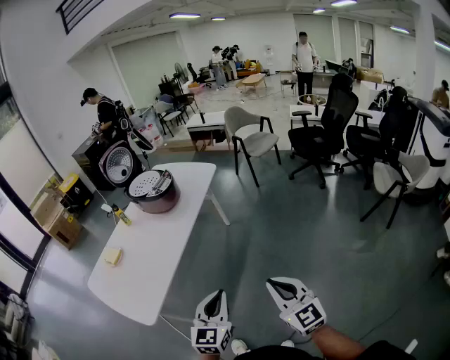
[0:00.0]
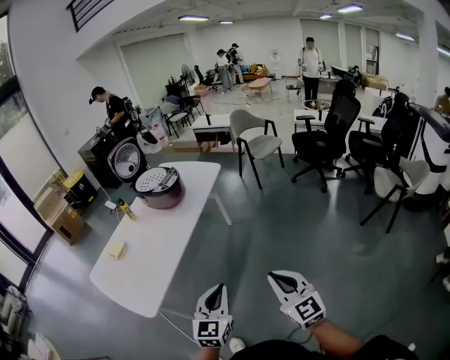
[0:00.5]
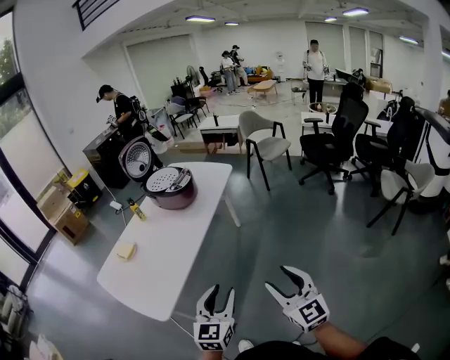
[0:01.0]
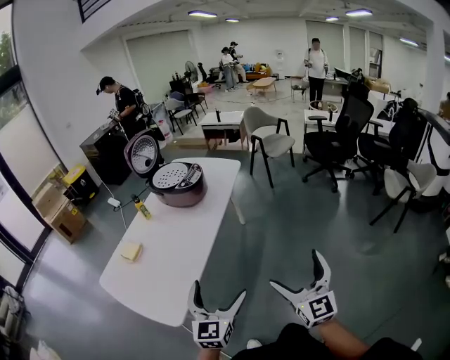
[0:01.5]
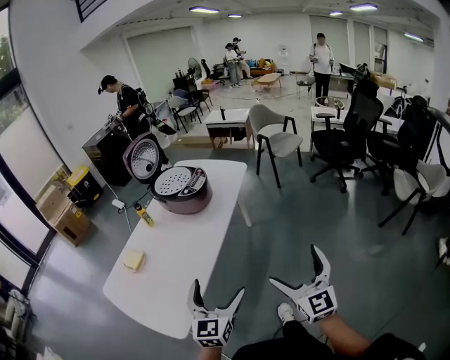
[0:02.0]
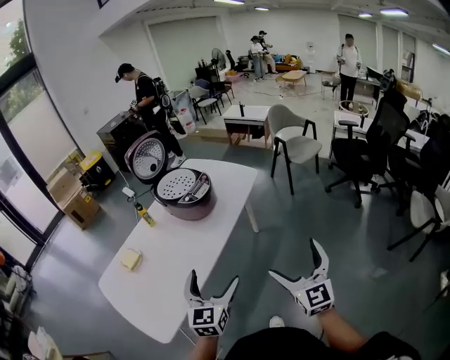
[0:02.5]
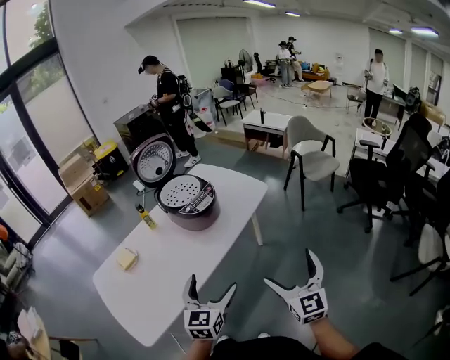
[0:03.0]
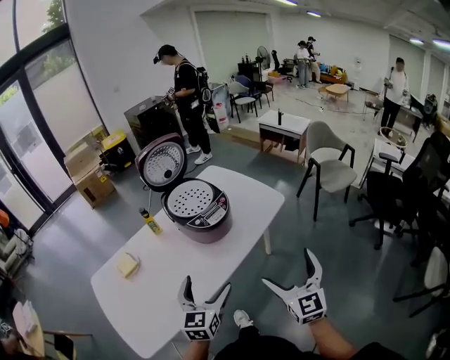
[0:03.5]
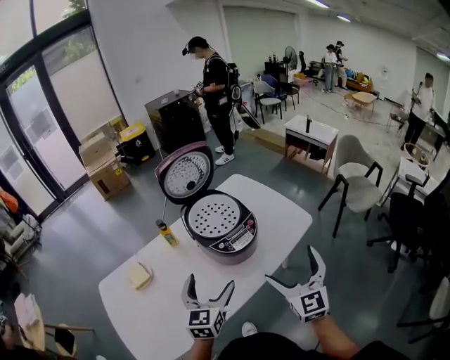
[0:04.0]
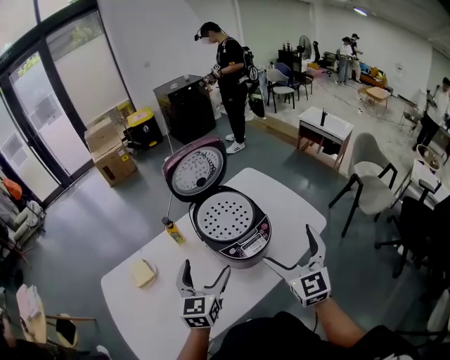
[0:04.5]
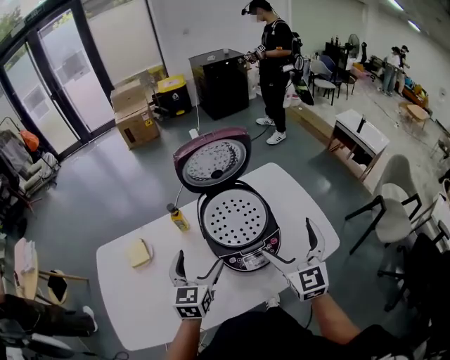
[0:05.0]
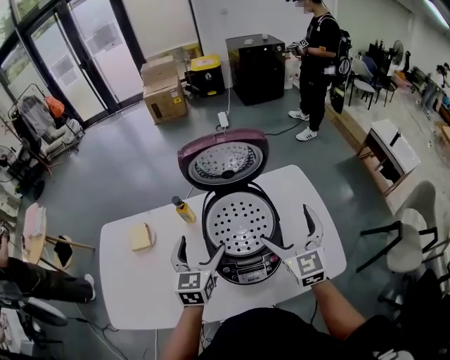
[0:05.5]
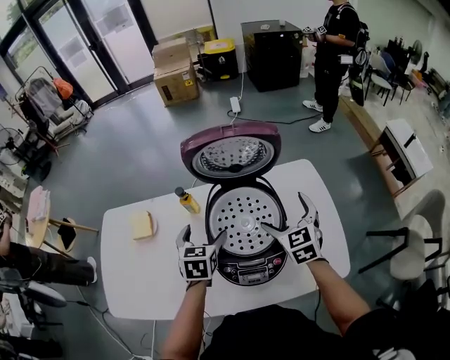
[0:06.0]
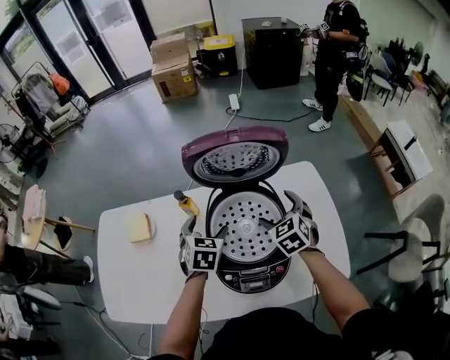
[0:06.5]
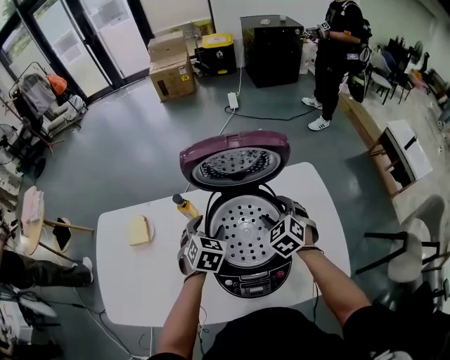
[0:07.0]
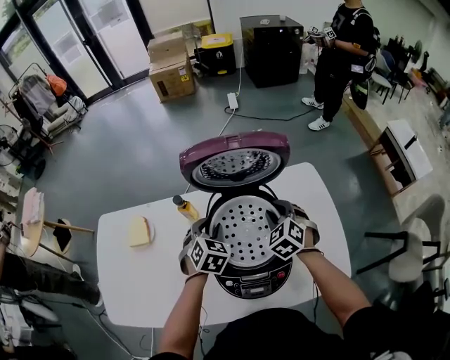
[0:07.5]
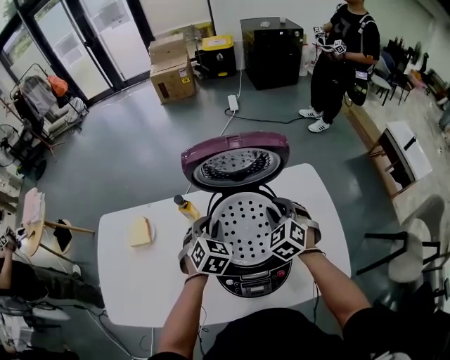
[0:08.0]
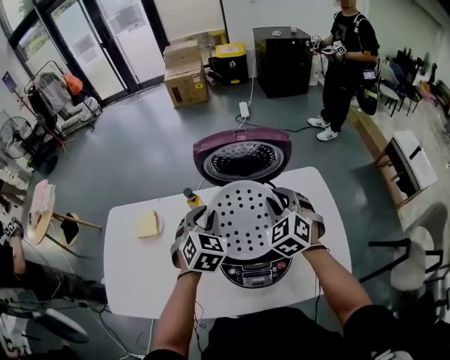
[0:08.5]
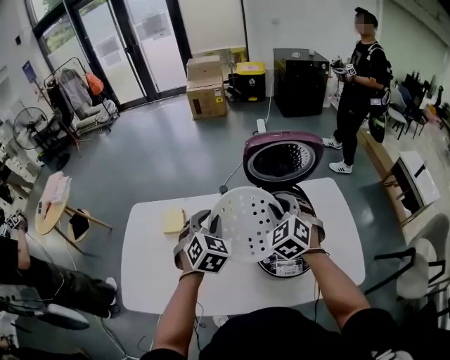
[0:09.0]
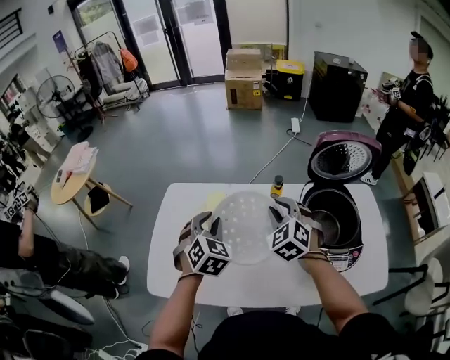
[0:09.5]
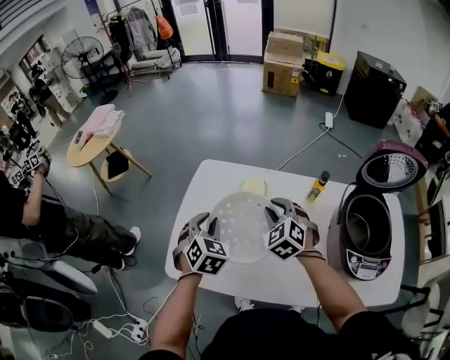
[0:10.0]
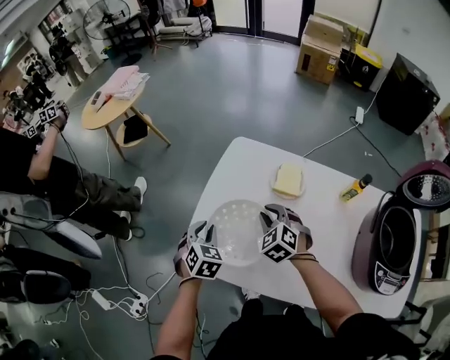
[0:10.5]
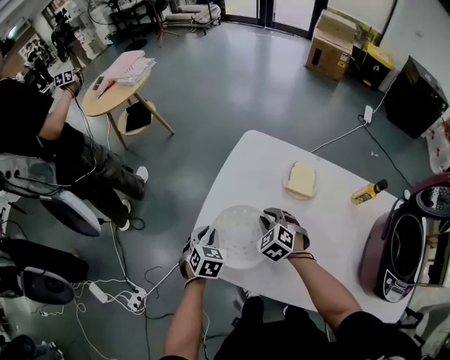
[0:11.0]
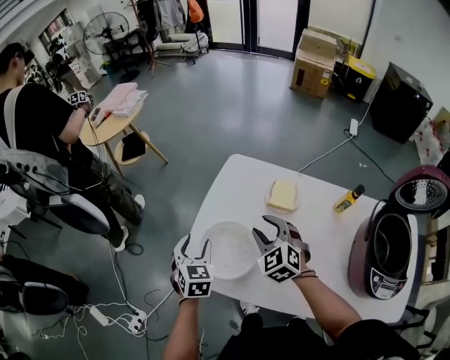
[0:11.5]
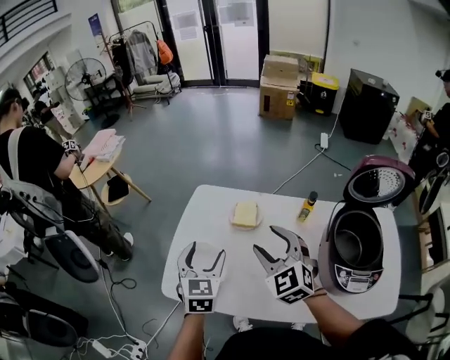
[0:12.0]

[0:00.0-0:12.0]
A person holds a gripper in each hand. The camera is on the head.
0:00.0 to 0:02.0: The left gripper goes some 20 cm to the left and forward, and opens its fingers. The right gripper heads forward and to the left, covering about 15 cm, and opens.
0:02.0 to 0:04.0: The left gripper moves some 40 cm, and changes its angle by about 30 degrees; the right gripper changes place by about 50 cm, and changes its angle by about 30 degrees.
0:04.0 to 0:06.0: The left gripper changes place by about 25 cm, and swivels approximately 40 degrees; the right gripper shifts by about 40 cm, and turns by about 40 degrees.
0:06.0 to 0:08.0: Both grippers move forward, about 5 cm. The left gripper turns by approximately 30 degrees, and closes up. Meanwhile the right gripper turns by roughly 30 degrees, and closes.
0:08.0 to 0:10.0: The pair of grippers is taken to the left, approximately 50 cm. The right gripper swivels about 20 degrees. The left gripper turns by roughly 20 degrees.
0:10.0 to 0:12.0: The left gripper goes roughly 5 cm backward, goes downward and returns, about 20 cm each way, rotates about 30 degrees, and opens up, while the right gripper travels upward and backward by approximately 10 cm.

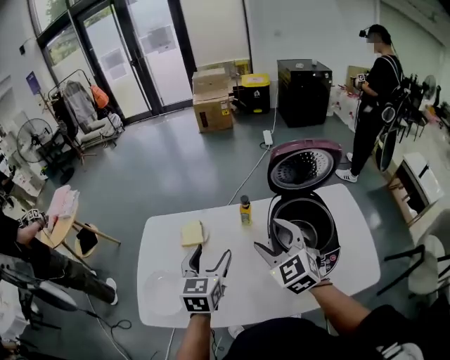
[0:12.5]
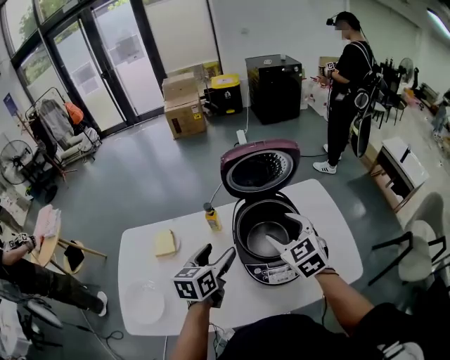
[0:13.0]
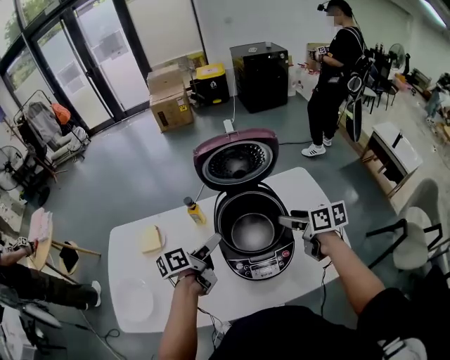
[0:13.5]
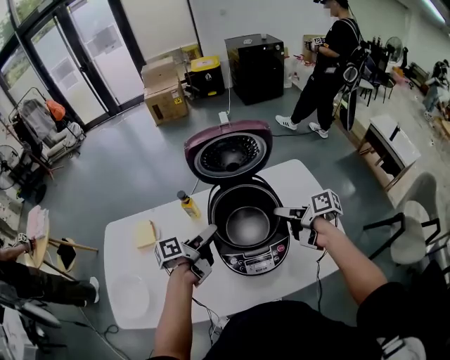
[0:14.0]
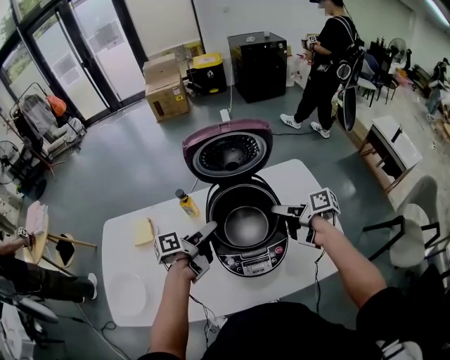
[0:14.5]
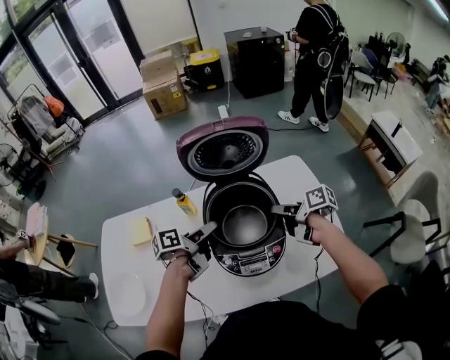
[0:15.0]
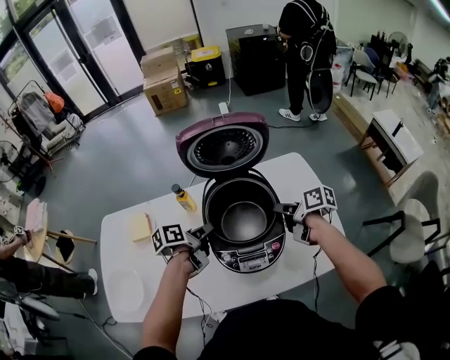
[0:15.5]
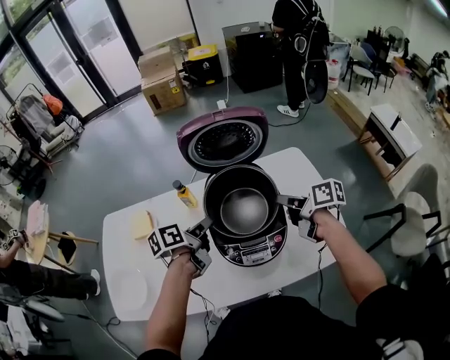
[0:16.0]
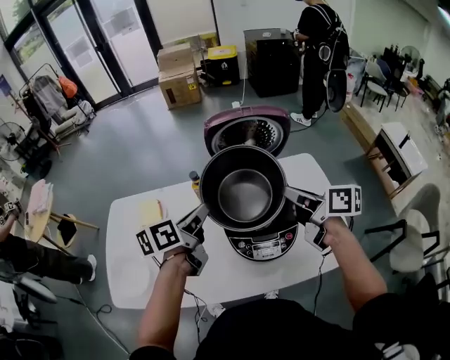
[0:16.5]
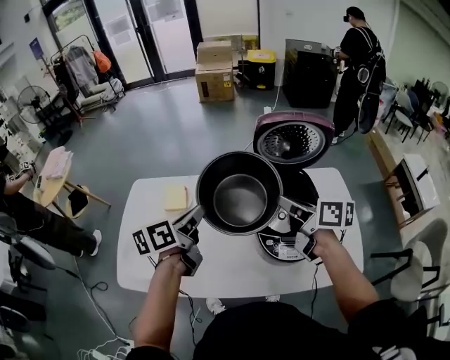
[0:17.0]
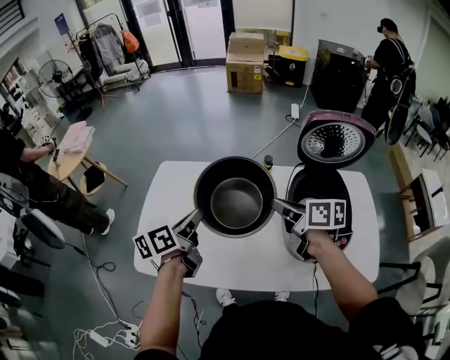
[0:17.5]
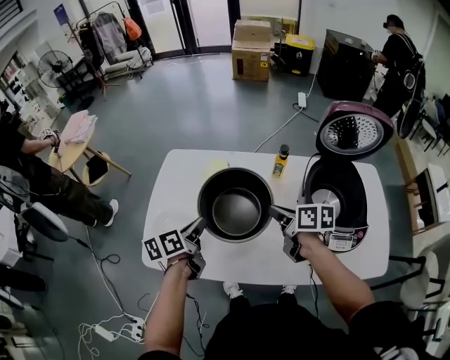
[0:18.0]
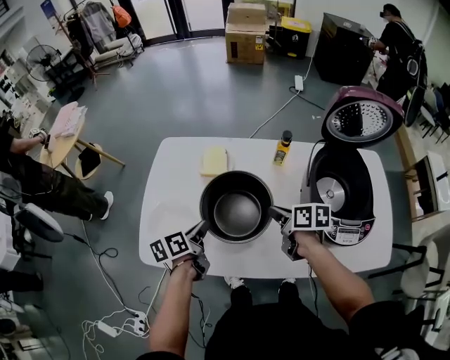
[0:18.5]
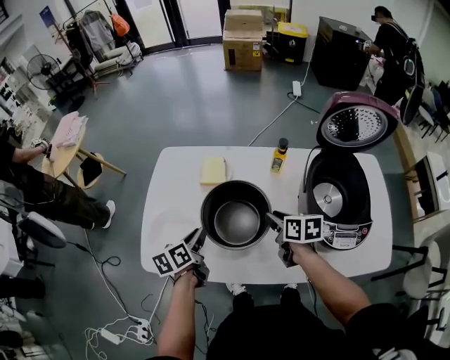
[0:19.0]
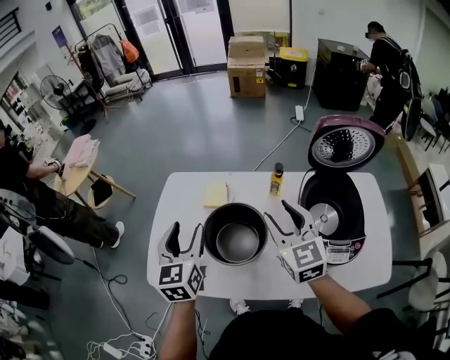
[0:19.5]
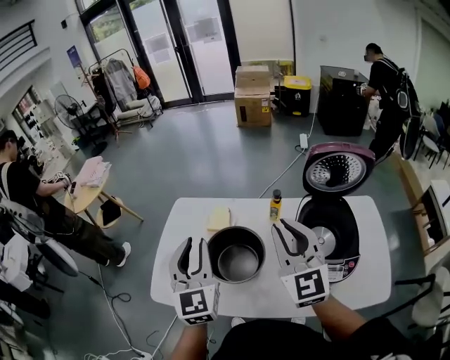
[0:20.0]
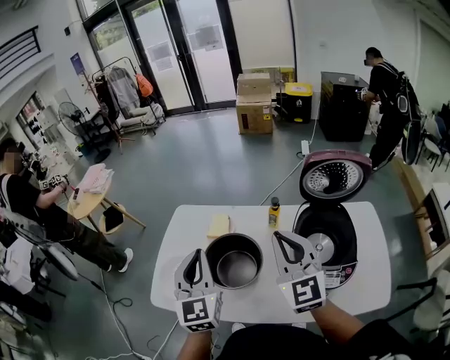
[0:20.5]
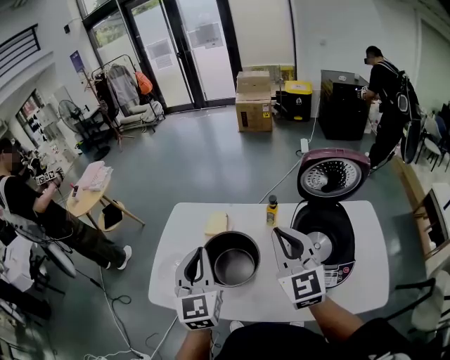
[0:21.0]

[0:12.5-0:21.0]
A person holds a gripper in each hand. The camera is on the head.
0:12.5 to 0:14.5: The two grippers go about 30 cm to the right and downward. The left gripper rotates around the line of its fingers by about 60 degrees, counterclockwise from behind; the right gripper rotates around the line of its fingers by approximately 100 degrees, clockwise from behind.
0:14.5 to 0:16.5: The two grippers go some 15 cm upward. The left gripper changes its angle by roughly 30 degrees, and closes its fingers; the right gripper turns by approximately 30 degrees, and closes up.
0:16.5 to 0:19.0: Both grippers move to the left and downward, about 40 cm. The left gripper swivels some 30 degrees; the right gripper turns by roughly 30 degrees.
0:19.0 to 0:21.0: Both grippers move upward, some 30 cm. The right gripper angles its fingers upward, by about 40 degrees. Meanwhile the left gripper changes its angle by some 60 degrees.

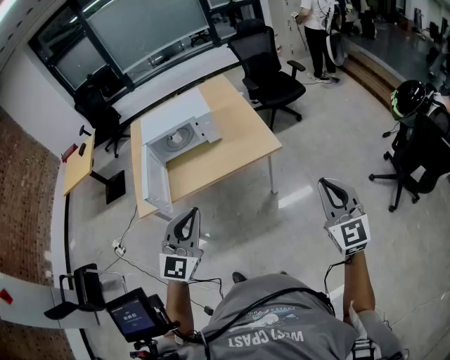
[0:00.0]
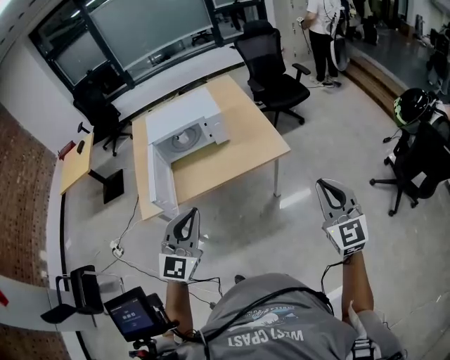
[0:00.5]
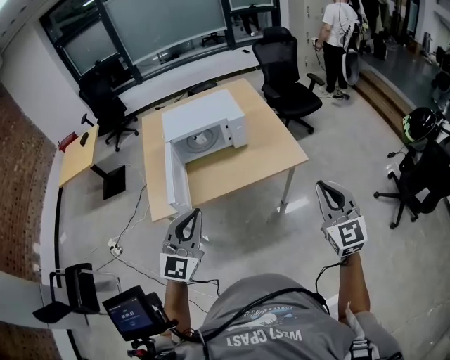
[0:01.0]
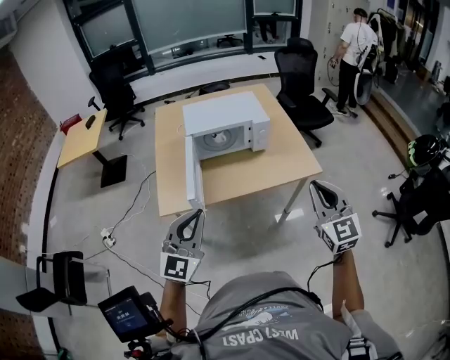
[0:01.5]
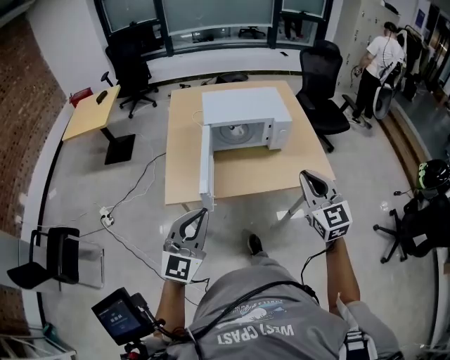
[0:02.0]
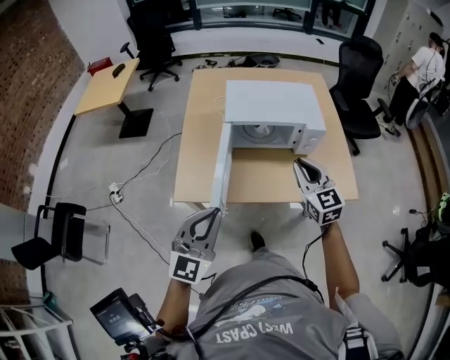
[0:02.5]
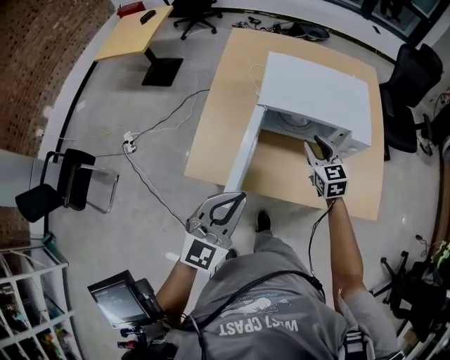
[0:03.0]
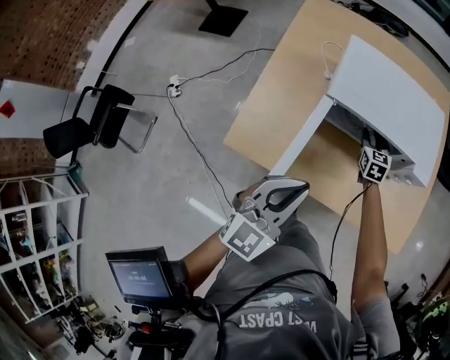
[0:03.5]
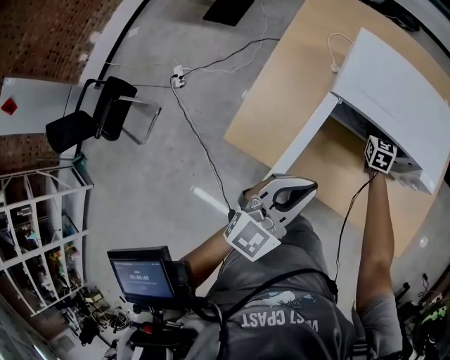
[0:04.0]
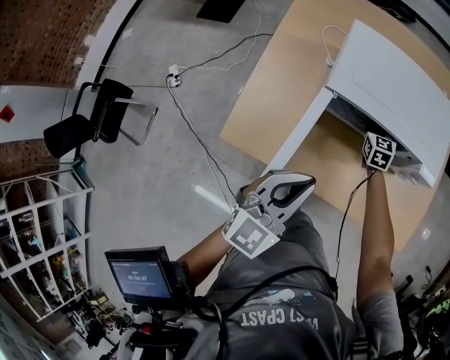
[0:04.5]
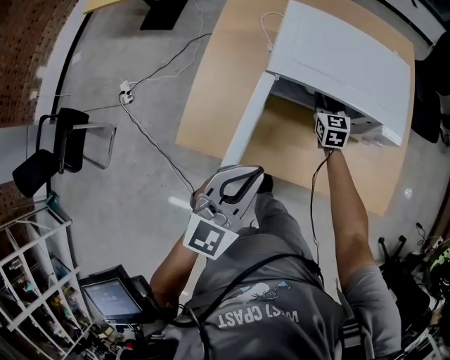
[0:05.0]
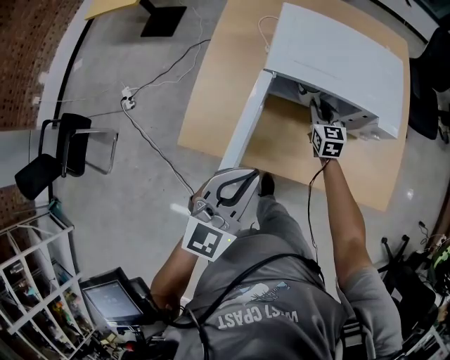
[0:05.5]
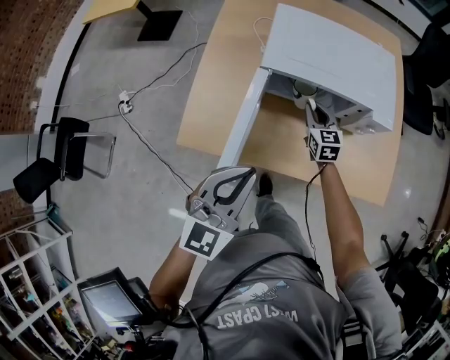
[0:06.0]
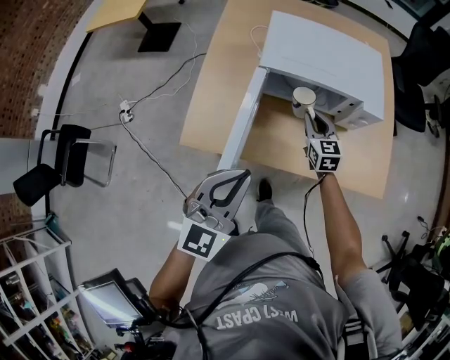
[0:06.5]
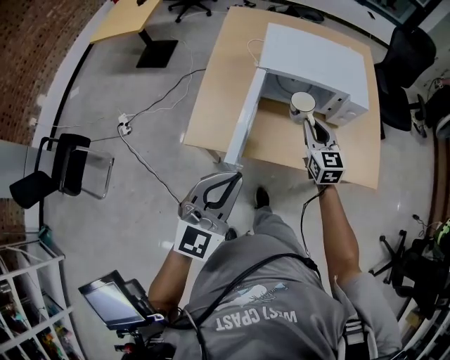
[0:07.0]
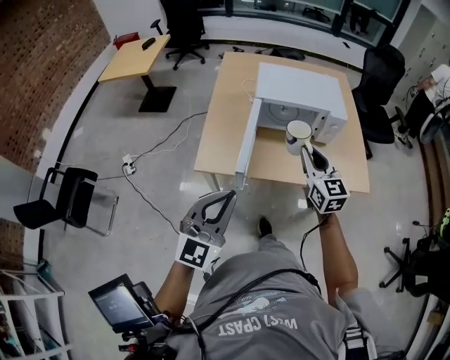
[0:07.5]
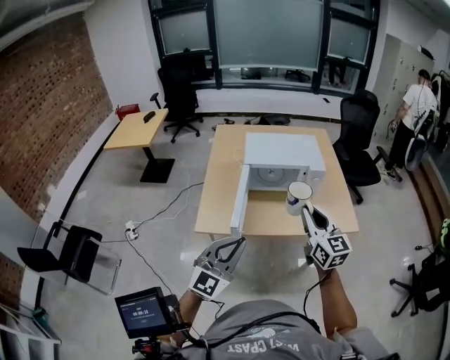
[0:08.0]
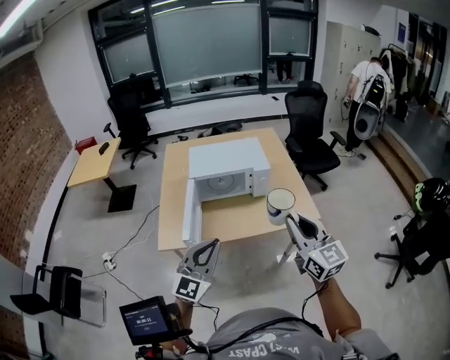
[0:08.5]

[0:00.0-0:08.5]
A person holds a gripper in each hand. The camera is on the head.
0:00.0 to 0:02.0: Both grippers travel together to the left, approximately 40 cm.
0:02.0 to 0:04.0: The right gripper moves forward and downward, roughly 70 cm, changes its angle by about 30 degrees, and opens. Meanwhile the left gripper goes roughly 40 cm forward and downward, and changes its angle by about 30 degrees.
0:04.0 to 0:06.5: The right gripper shifts about 20 cm backward and upward. Meanwhile the left gripper moves backward, some 10 cm.
0:06.5 to 0:08.5: The left gripper goes roughly 30 cm backward, upward and to the right, and swivels roughly 30 degrees, while the right gripper shifts about 60 cm backward, upward and to the right, and rotates some 30 degrees.
